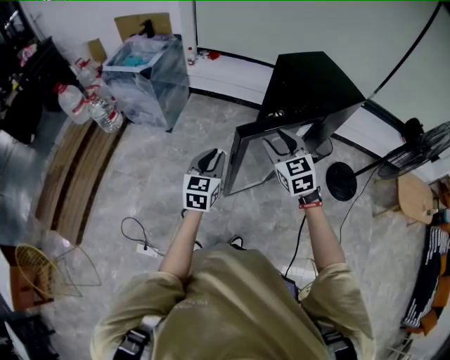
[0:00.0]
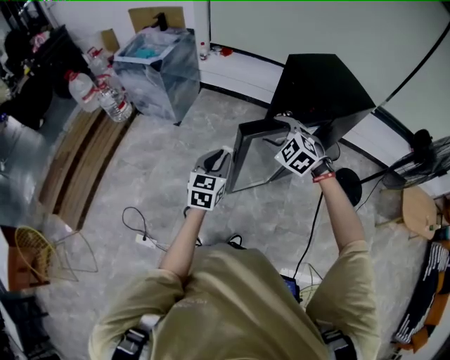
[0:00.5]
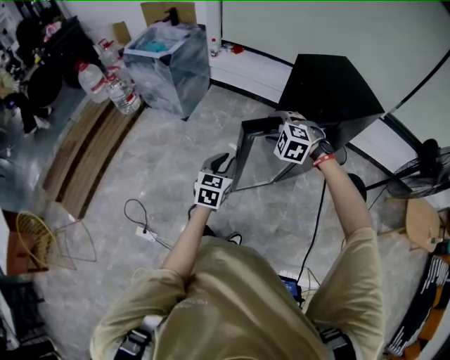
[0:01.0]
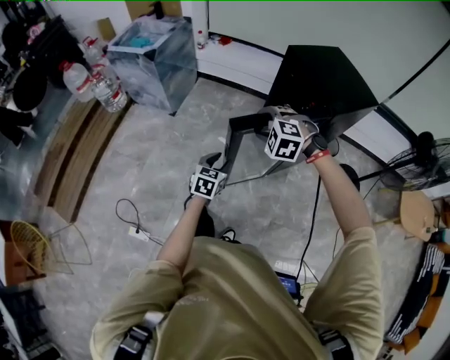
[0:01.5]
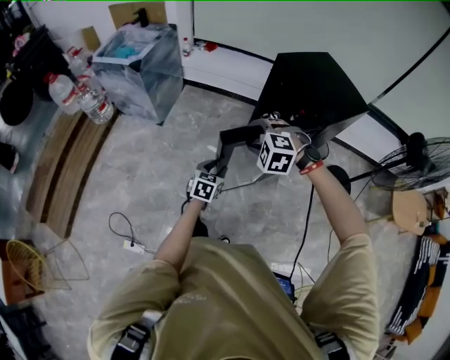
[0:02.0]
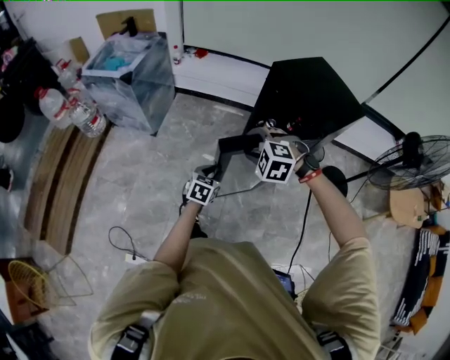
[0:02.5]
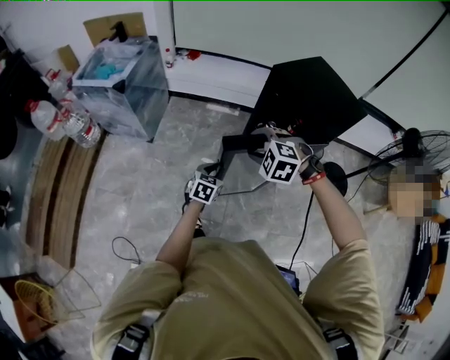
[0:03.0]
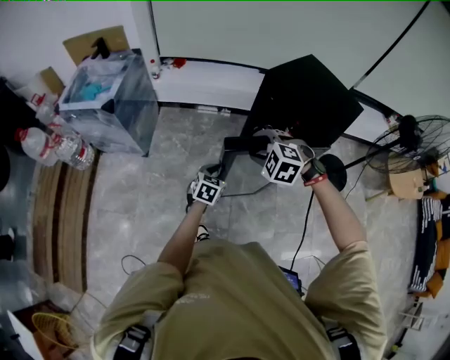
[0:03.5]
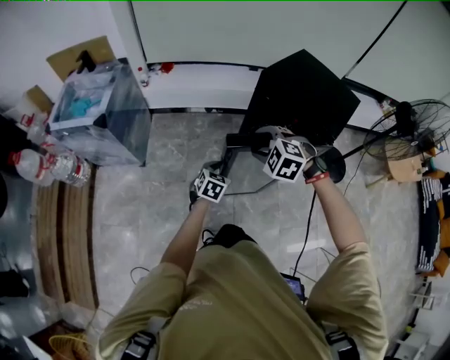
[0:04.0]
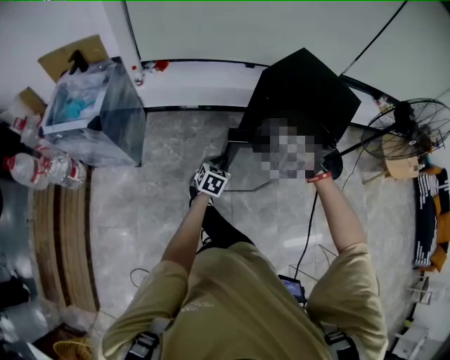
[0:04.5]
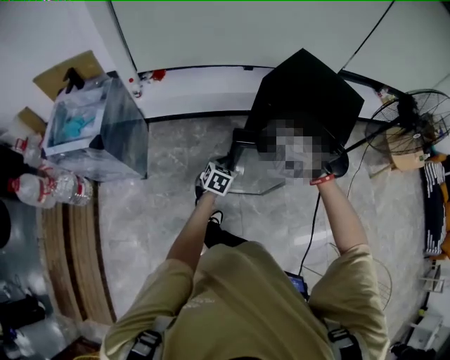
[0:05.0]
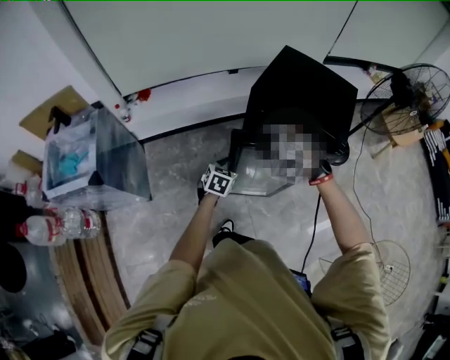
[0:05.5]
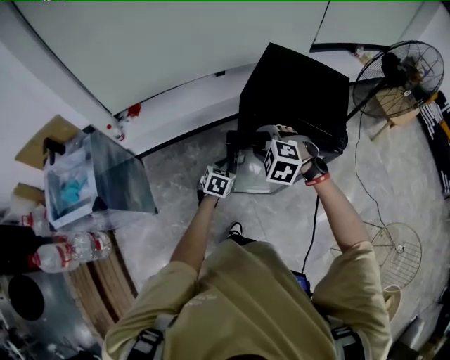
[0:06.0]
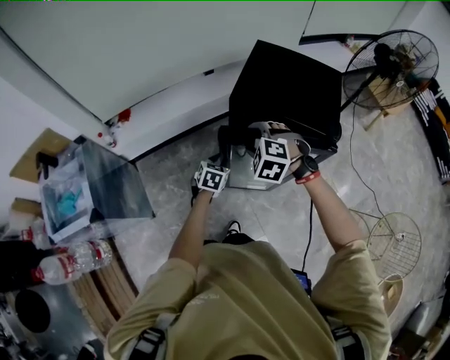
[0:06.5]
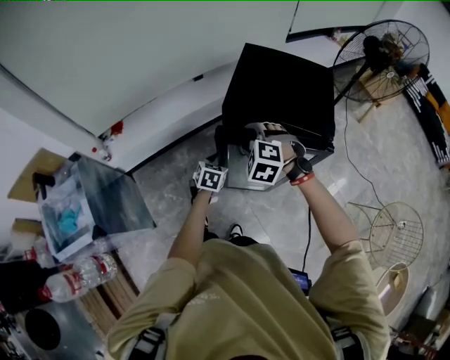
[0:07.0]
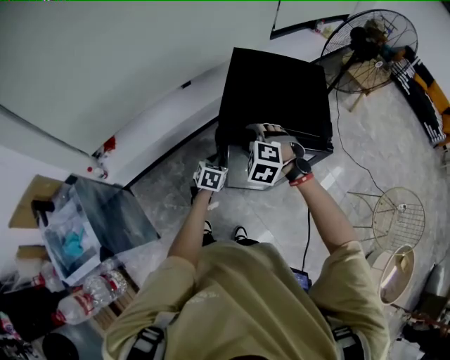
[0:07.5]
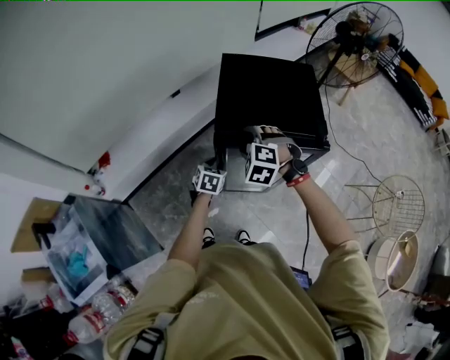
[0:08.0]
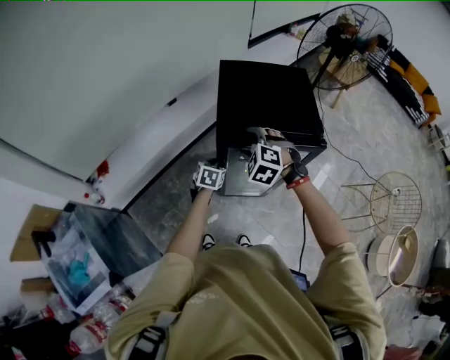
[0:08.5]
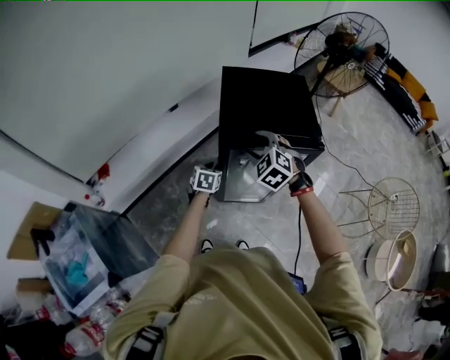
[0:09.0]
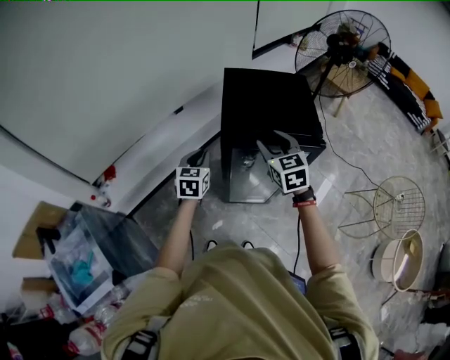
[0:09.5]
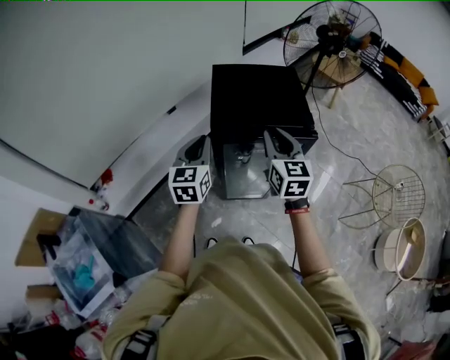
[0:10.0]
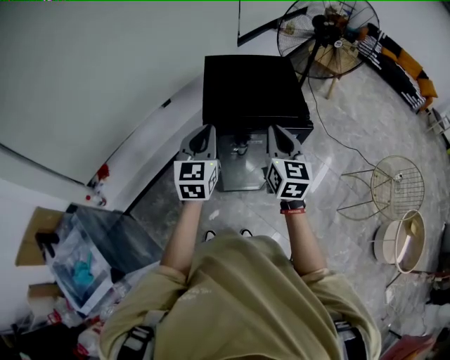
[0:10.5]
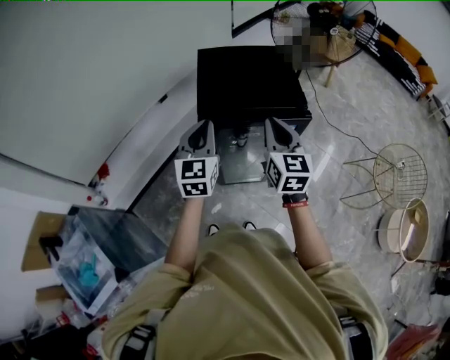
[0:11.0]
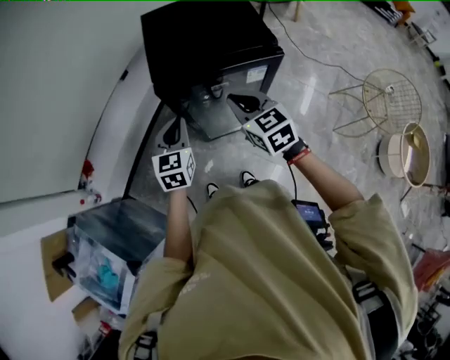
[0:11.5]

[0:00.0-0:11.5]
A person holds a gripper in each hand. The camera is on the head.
0:00.0 to 0:02.0: The right gripper shifts roughly 10 cm downward and forward, and twists roughly 50 degrees counterclockwise, seen from behind. Meanwhile the left gripper shifts some 20 cm downward and to the right, and changes its angle by approximately 20 degrees.
0:02.0 to 0:04.0: The two grippers go roughly 20 cm forward. The left gripper swivels approximately 20 degrees; the right gripper turns by roughly 30 degrees.
0:04.0 to 0:06.0: The two grippers go about 20 cm forward. The right gripper turns by about 20 degrees.
0:06.0 to 0:07.5: Both grippers move forward, about 10 cm.
0:07.5 to 0:09.5: The right gripper is displaced upward and to the right by some 10 cm, and twists some 60 degrees clockwise, seen from behind. The left gripper goes some 15 cm upward and to the left, and changes its angle by some 20 degrees.
0:09.5 to 0:11.5: The left gripper goes approximately 5 cm to the right, and travels upward and back again, roughly 15 cm each way; the right gripper closes its fingers.

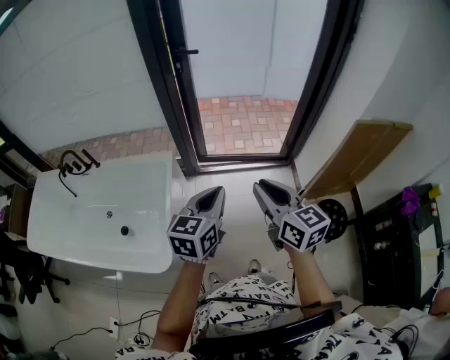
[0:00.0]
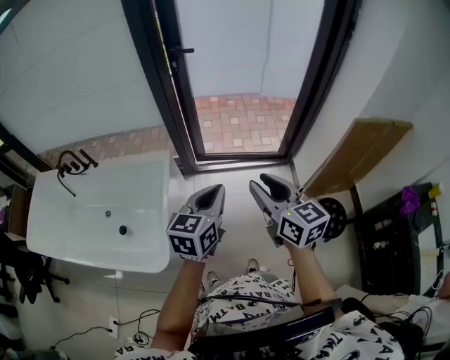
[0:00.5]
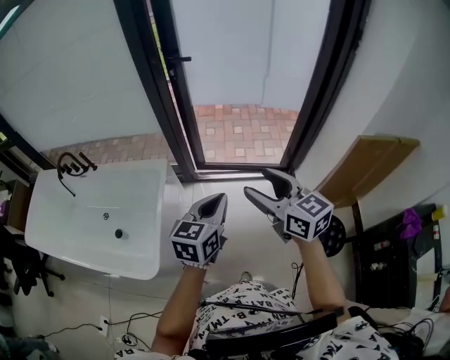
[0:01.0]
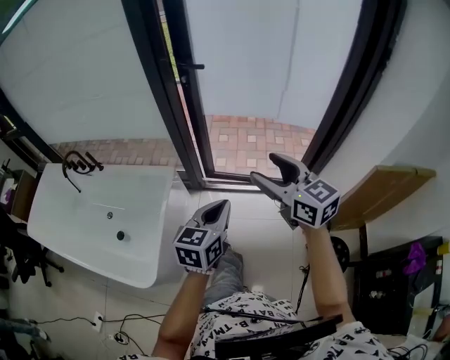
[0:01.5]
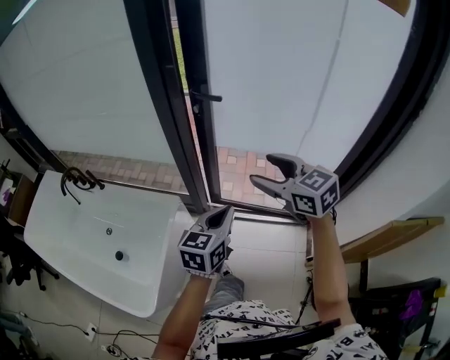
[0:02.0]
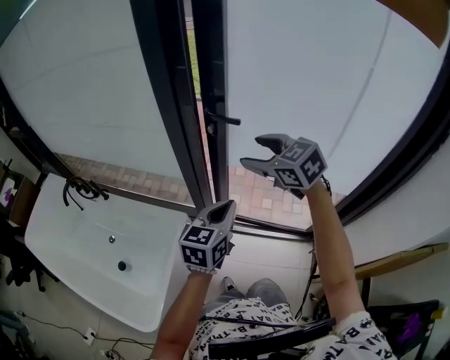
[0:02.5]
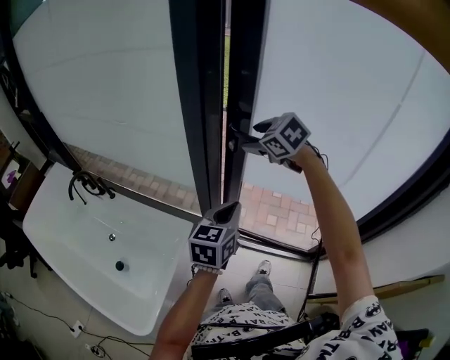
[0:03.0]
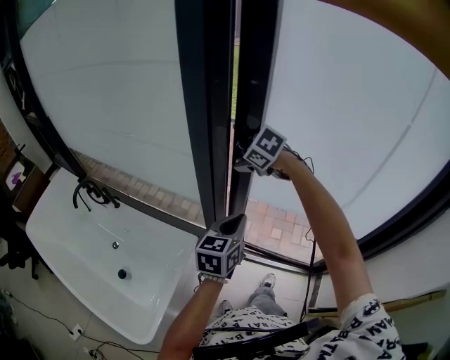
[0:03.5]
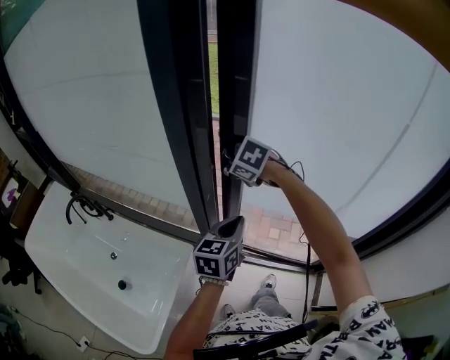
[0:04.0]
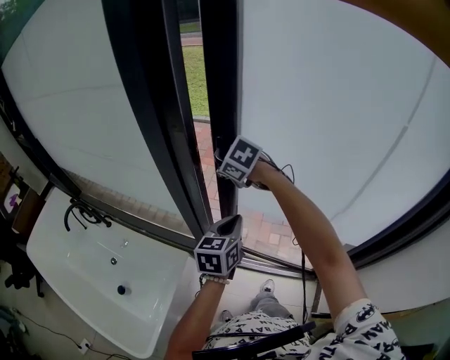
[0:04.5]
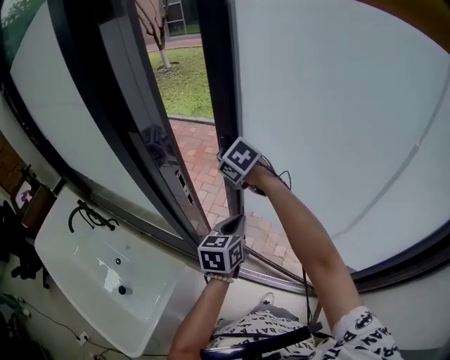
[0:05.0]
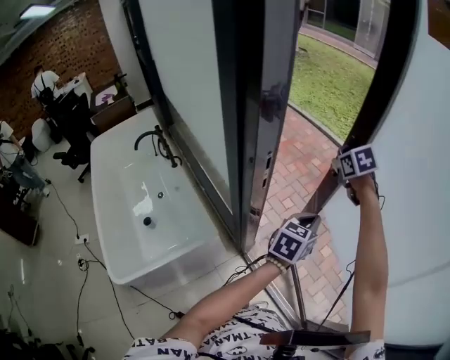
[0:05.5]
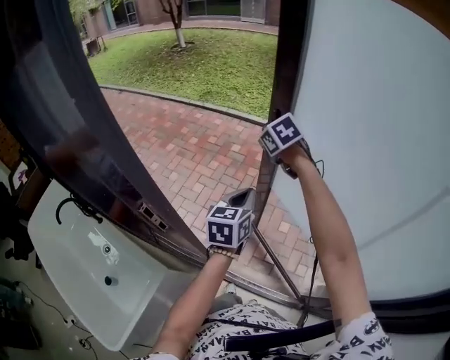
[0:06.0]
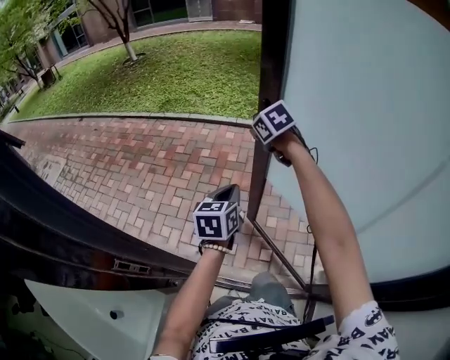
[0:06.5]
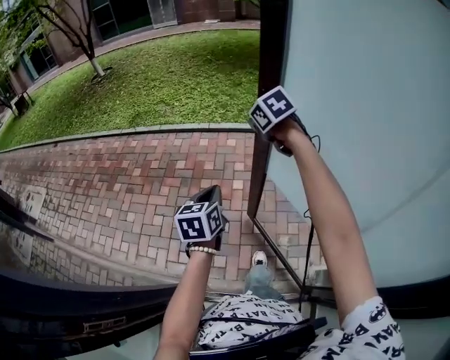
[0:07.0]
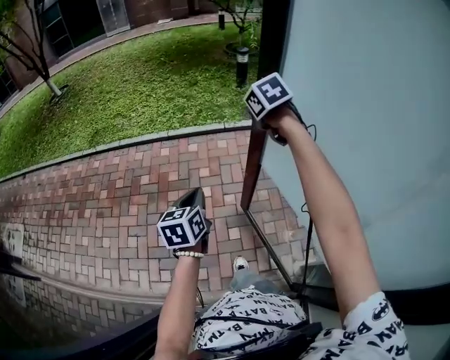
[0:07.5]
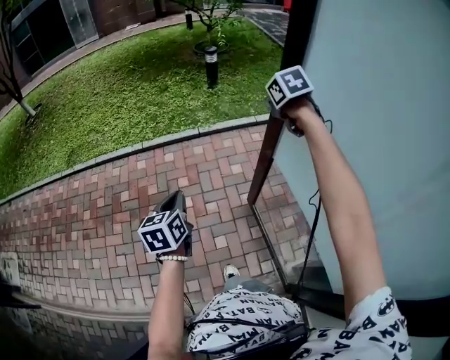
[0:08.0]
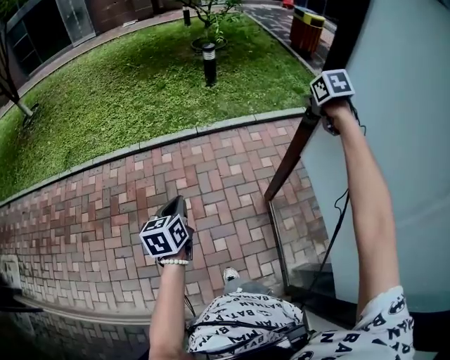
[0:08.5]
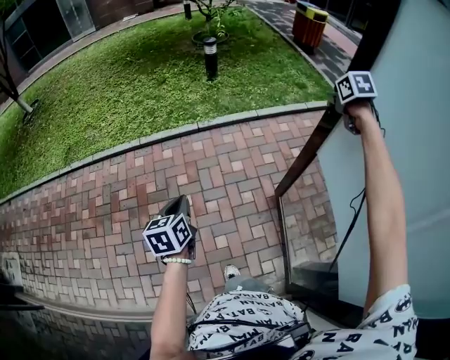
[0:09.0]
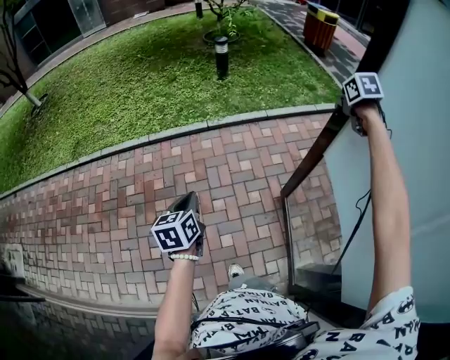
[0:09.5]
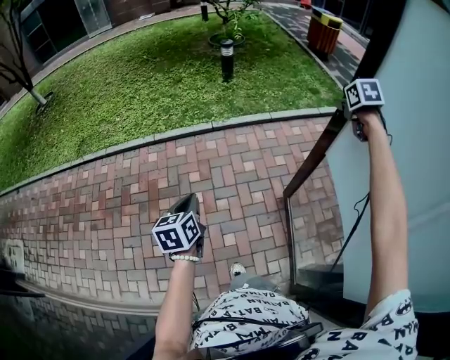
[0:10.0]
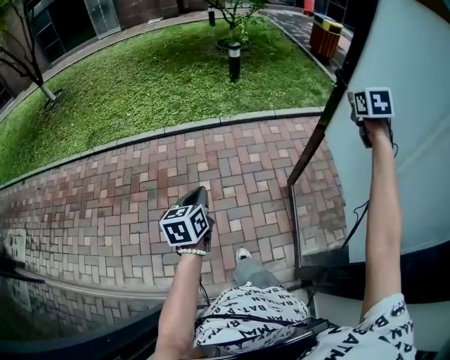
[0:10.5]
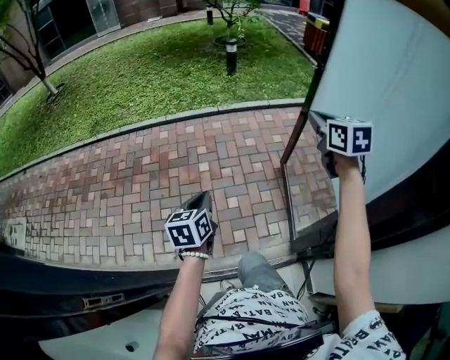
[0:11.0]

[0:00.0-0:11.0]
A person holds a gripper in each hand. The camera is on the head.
0:00.0 to 0:02.0: The two grippers go some 30 cm forward. The right gripper changes its angle by approximately 30 degrees, and opens its fingers.
0:02.0 to 0:03.5: The right gripper moves forward, about 35 cm, and tips its fingers downward by approximately 40 degrees; the left gripper travels forward by approximately 20 cm.
0:03.5 to 0:05.5: The grippers both shift forward and to the right by some 25 cm. The right gripper closes its fingers.
0:05.5 to 0:07.5: Both grippers are carried some 50 cm. The right gripper changes its angle by roughly 40 degrees. The left gripper rotates some 20 degrees.
0:07.5 to 0:09.0: The left gripper travels forward by about 15 cm, while the right gripper shifts roughly 40 cm to the right, and turns by some 30 degrees.
0:09.0 to 0:11.0: The two grippers go some 40 cm backward. The right gripper swivels some 30 degrees, and opens, then closes again.

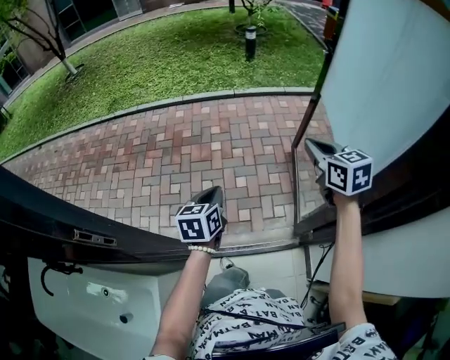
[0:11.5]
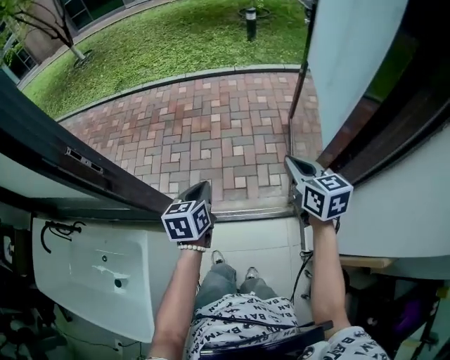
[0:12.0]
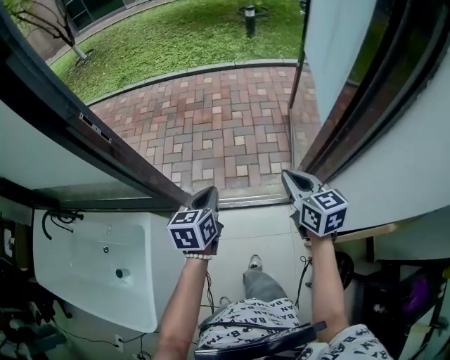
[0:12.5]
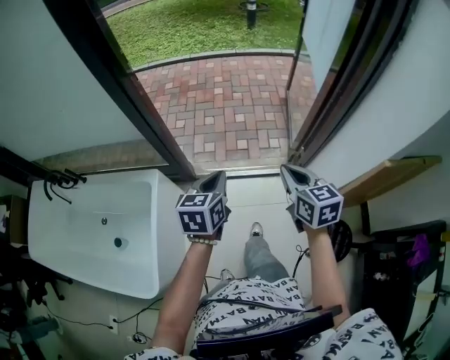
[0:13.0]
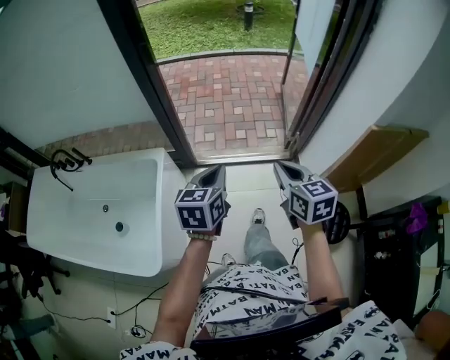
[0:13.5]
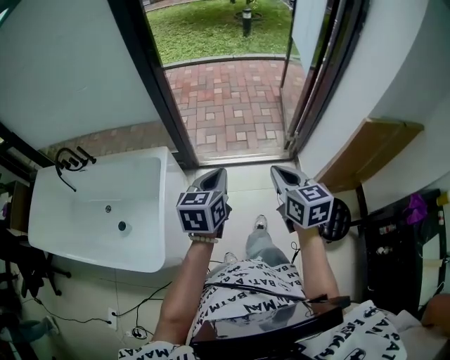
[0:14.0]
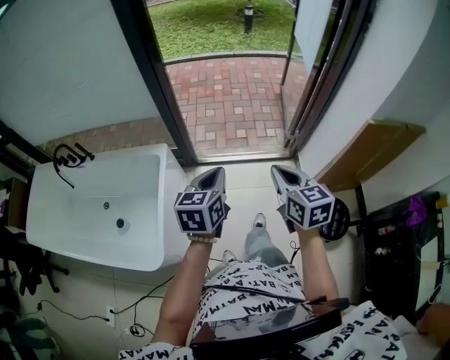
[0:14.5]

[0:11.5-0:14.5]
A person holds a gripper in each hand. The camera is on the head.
0:11.5 to 0:13.0: The two grippers travel together, backward, roughly 50 cm.
0:13.0 to 0:14.5: The grippers both shift backward by about 20 cm.

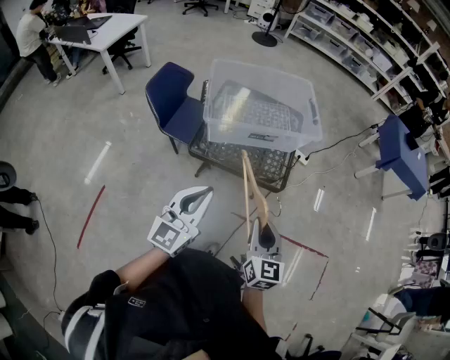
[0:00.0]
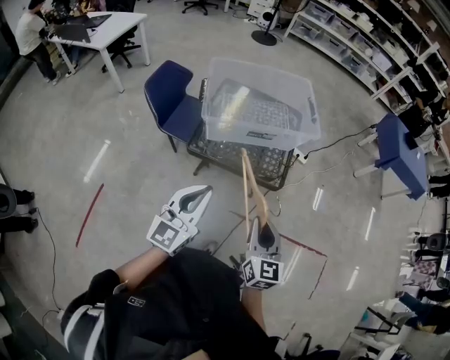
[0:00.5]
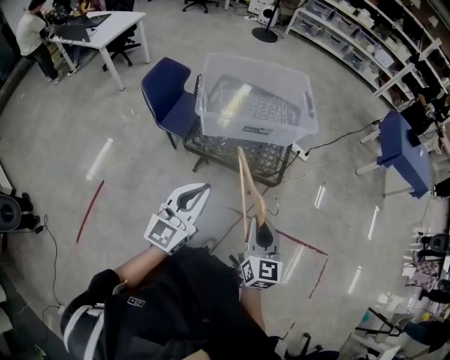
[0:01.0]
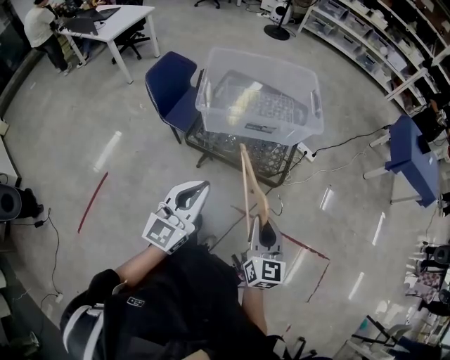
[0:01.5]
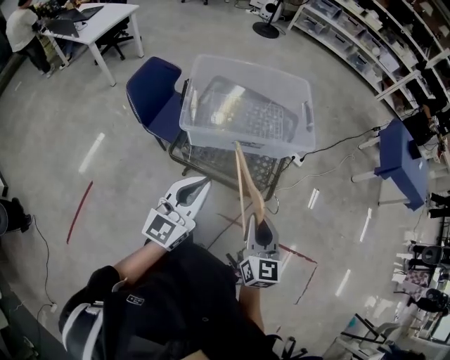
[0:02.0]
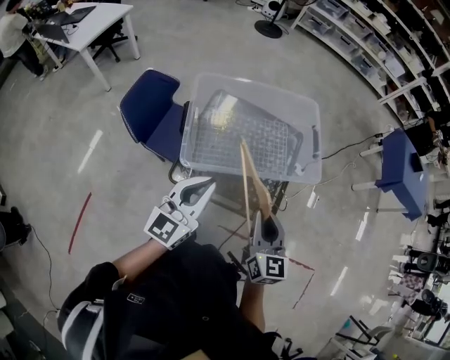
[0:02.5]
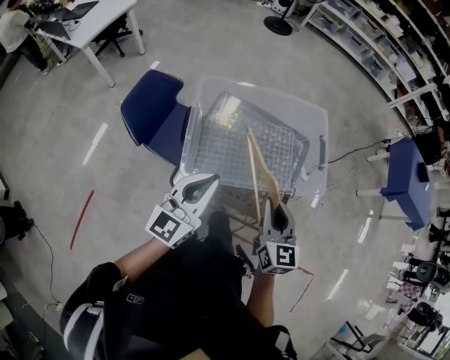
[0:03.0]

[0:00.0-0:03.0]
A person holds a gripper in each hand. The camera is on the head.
0:00.0 to 0:01.5: Both grippers move to the right, roughly 10 cm.
0:01.5 to 0:03.0: The two grippers travel together, forward, some 40 cm.
